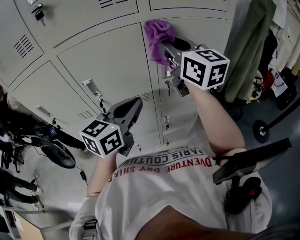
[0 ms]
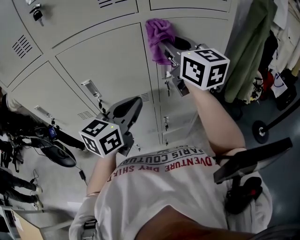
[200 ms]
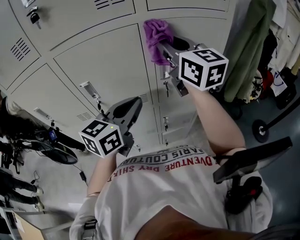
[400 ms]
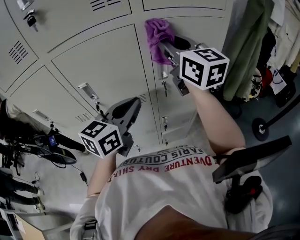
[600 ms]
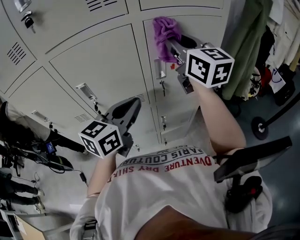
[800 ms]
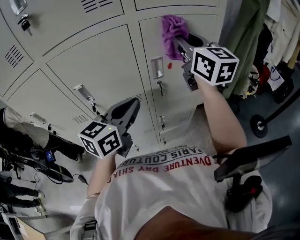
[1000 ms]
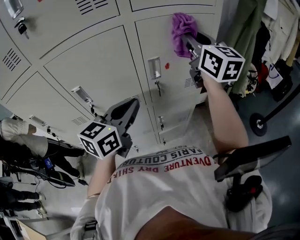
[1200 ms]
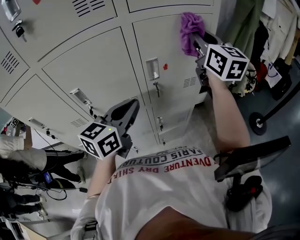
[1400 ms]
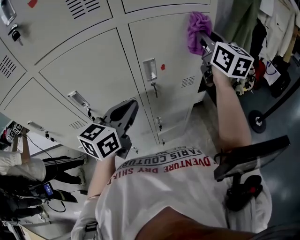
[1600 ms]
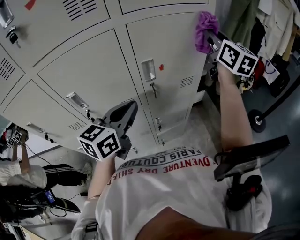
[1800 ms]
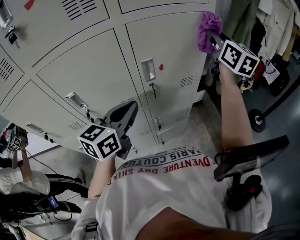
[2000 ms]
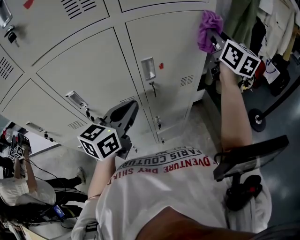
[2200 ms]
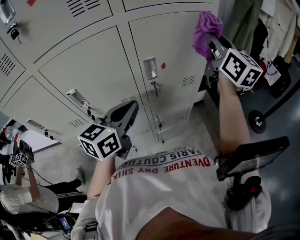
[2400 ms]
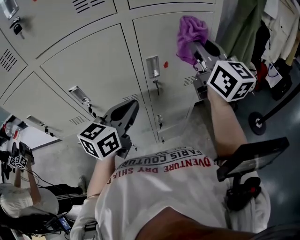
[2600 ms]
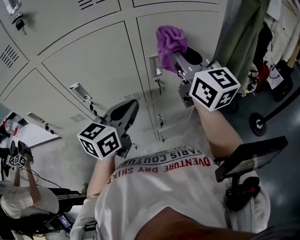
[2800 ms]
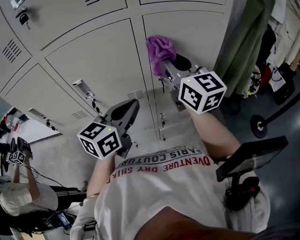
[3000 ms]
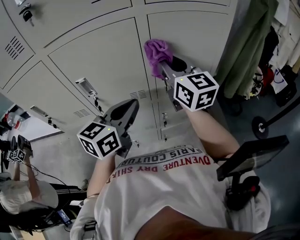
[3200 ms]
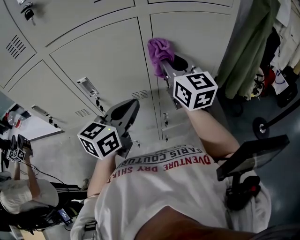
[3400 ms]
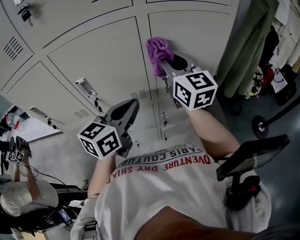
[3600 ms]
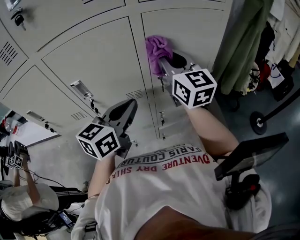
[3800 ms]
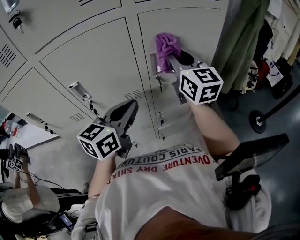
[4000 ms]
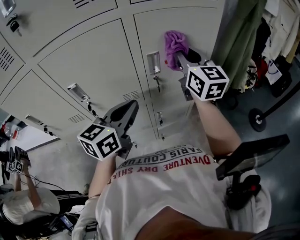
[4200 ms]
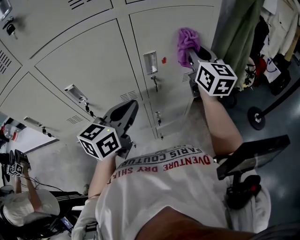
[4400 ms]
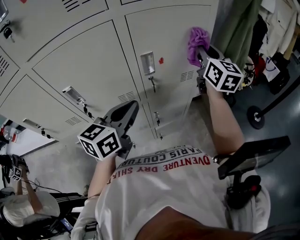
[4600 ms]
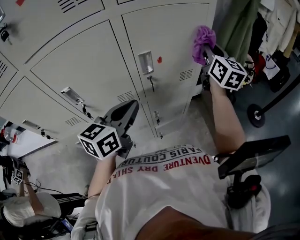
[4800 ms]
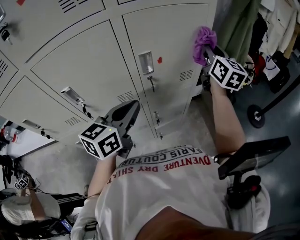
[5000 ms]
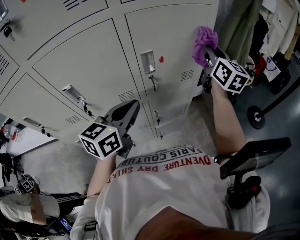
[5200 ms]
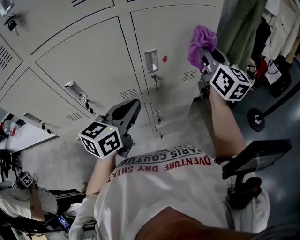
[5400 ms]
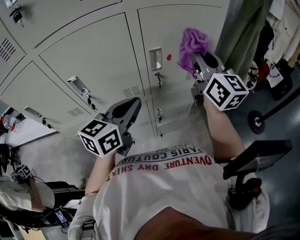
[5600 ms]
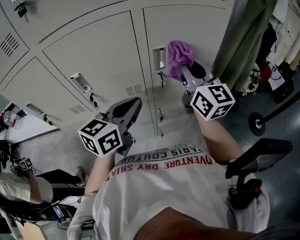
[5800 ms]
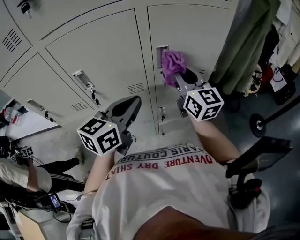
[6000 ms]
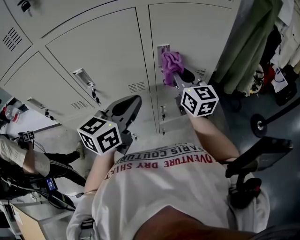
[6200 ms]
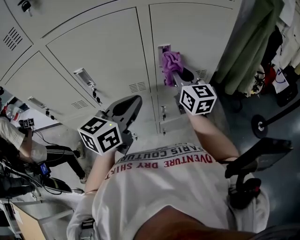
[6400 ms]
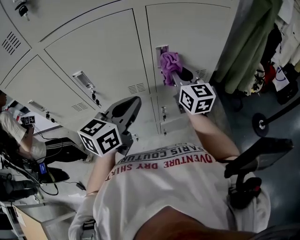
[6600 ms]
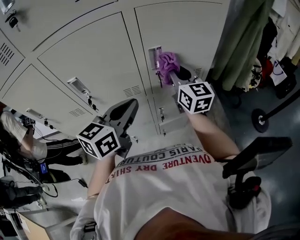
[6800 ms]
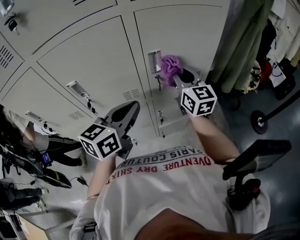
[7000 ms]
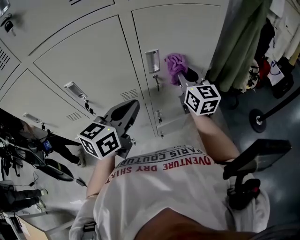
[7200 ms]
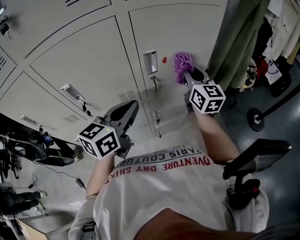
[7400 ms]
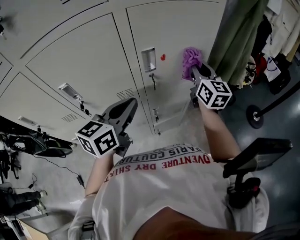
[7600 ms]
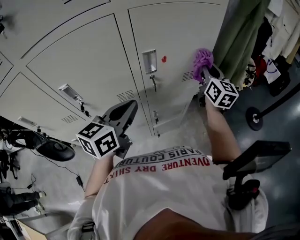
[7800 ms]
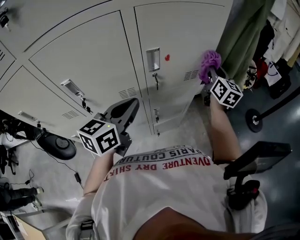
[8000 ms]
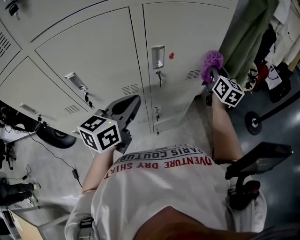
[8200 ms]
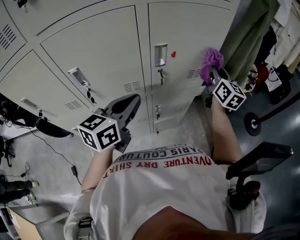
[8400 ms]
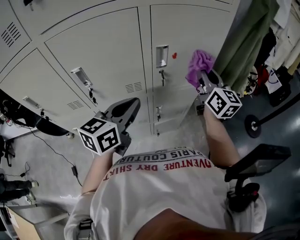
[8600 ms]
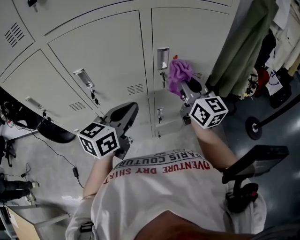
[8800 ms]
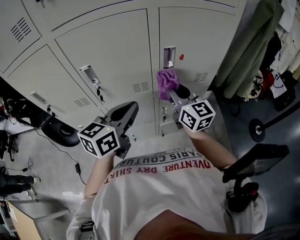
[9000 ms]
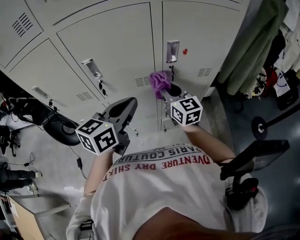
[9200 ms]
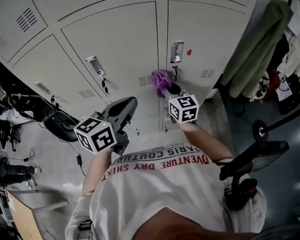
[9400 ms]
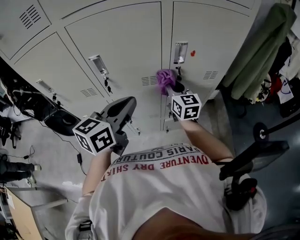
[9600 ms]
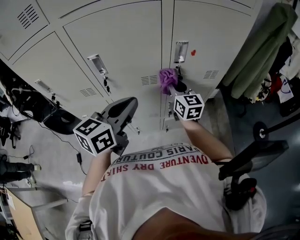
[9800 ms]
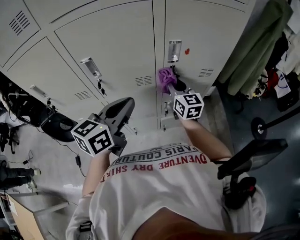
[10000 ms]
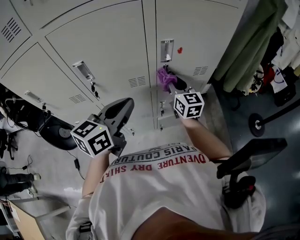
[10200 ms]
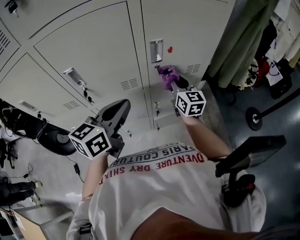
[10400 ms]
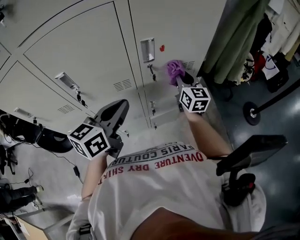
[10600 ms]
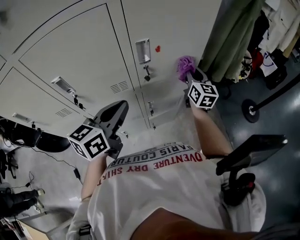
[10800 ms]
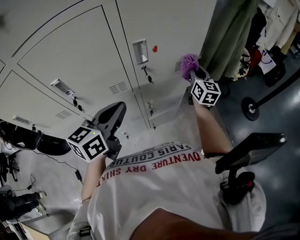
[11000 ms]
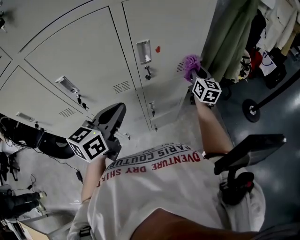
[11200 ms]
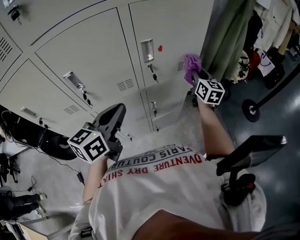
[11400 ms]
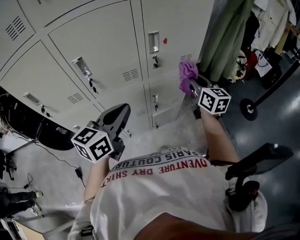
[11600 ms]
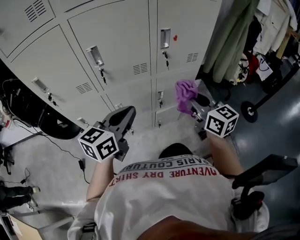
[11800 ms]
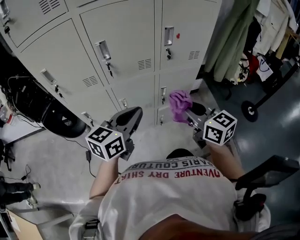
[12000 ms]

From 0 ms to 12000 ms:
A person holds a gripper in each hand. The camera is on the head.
From 0 ms to 1600 ms: The right gripper shifts approximately 20 cm to the right, and swivels about 20 degrees.
From 1600 ms to 3000 ms: The right gripper is displaced to the left and backward by about 20 cm.
From 3000 ms to 4400 ms: The right gripper goes roughly 15 cm to the right and forward.
From 4400 ms to 6000 ms: The right gripper goes about 15 cm to the left, backward and downward.
From 6000 ms to 7600 ms: The right gripper is displaced to the right and forward by roughly 15 cm.
From 7600 ms to 9000 ms: The left gripper moves backward, roughly 5 cm; the right gripper goes about 20 cm to the left and backward, and rotates roughly 20 degrees.
From 9000 ms to 10400 ms: The right gripper is displaced downward, forward and to the right by roughly 15 cm.
From 10400 ms to 12000 ms: The left gripper goes approximately 15 cm backward; the right gripper heads backward, covering approximately 30 cm, and swivels about 20 degrees.

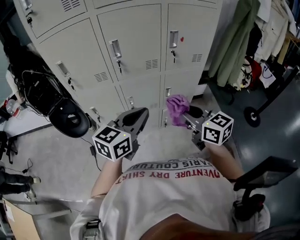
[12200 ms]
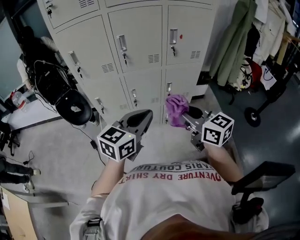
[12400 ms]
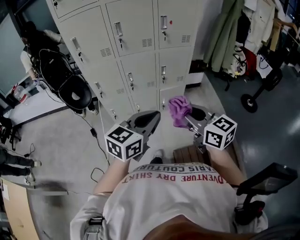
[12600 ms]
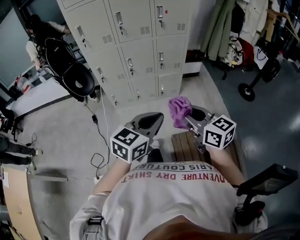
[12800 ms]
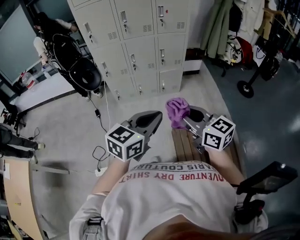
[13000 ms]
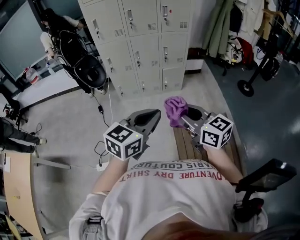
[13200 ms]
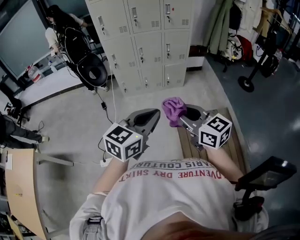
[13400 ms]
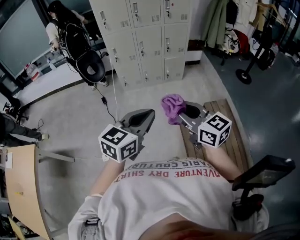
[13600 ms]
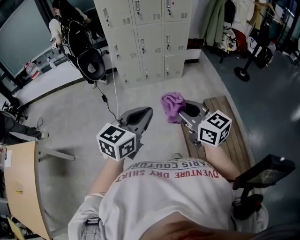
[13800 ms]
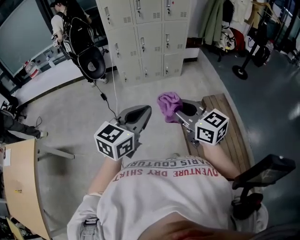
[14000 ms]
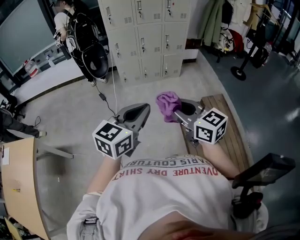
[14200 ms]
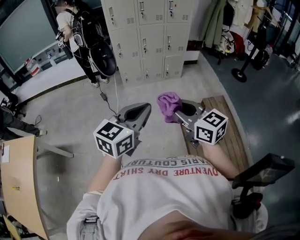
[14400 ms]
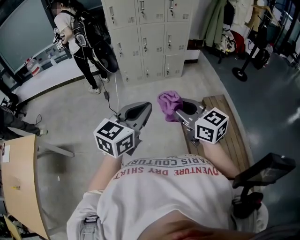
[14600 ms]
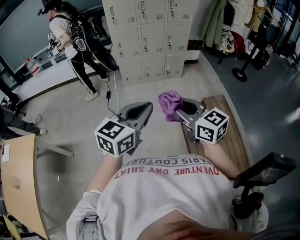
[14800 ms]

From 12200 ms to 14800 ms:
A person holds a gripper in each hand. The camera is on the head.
From 12200 ms to 13400 ms: The pair of grippers is taken backward, some 60 cm.
From 13400 ms to 14800 ms: Both grippers move backward and to the left, some 25 cm.

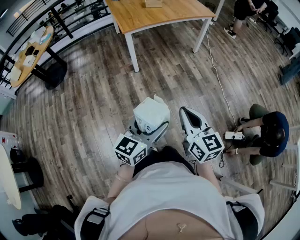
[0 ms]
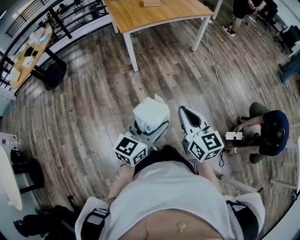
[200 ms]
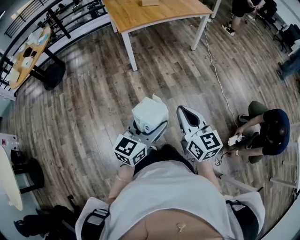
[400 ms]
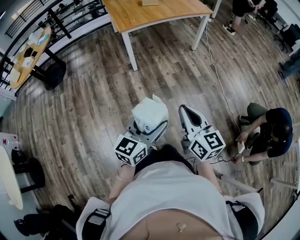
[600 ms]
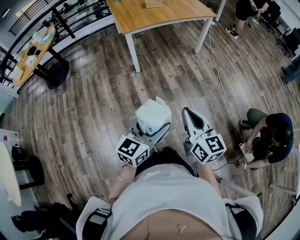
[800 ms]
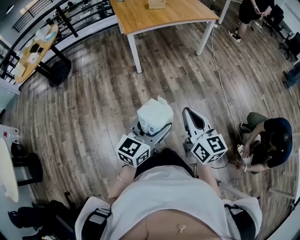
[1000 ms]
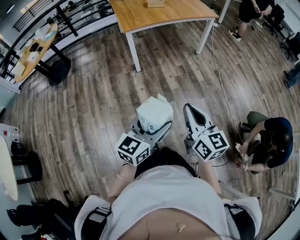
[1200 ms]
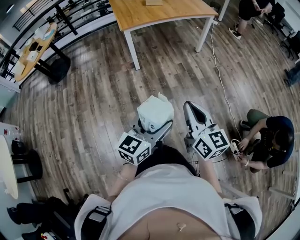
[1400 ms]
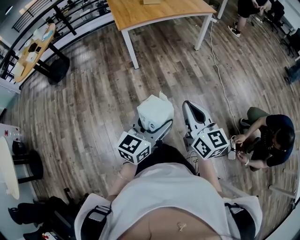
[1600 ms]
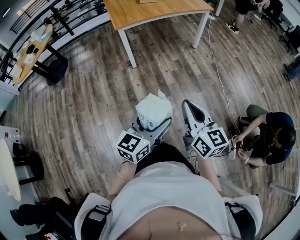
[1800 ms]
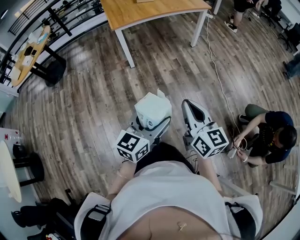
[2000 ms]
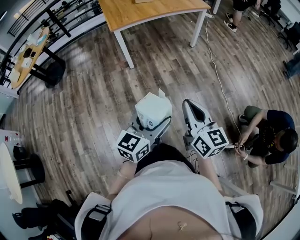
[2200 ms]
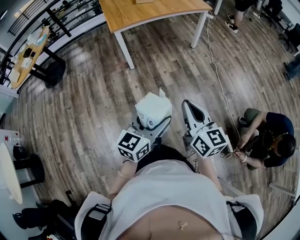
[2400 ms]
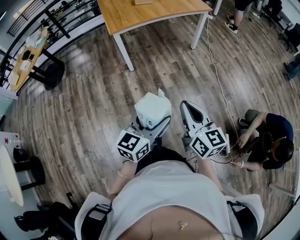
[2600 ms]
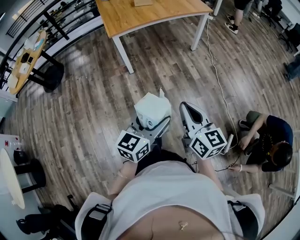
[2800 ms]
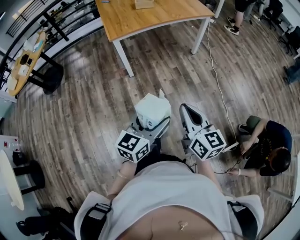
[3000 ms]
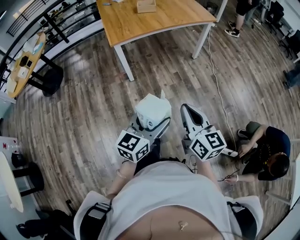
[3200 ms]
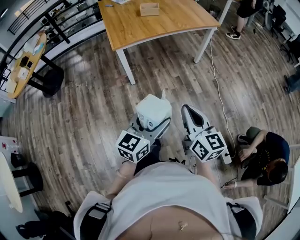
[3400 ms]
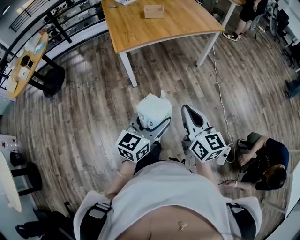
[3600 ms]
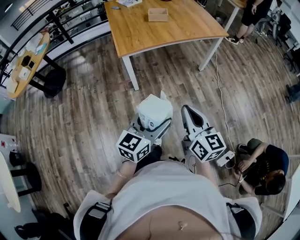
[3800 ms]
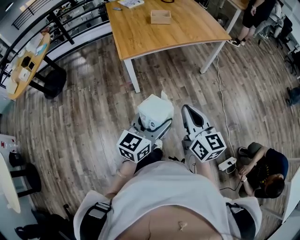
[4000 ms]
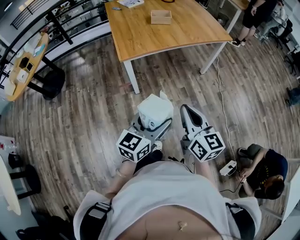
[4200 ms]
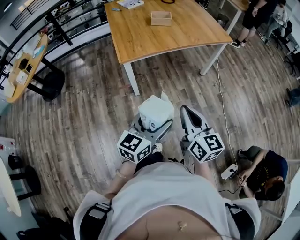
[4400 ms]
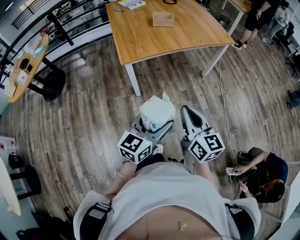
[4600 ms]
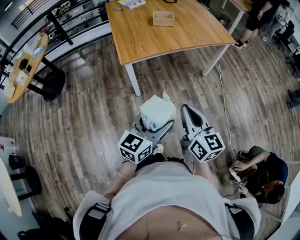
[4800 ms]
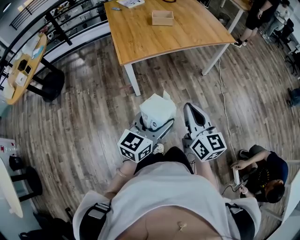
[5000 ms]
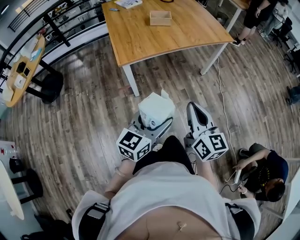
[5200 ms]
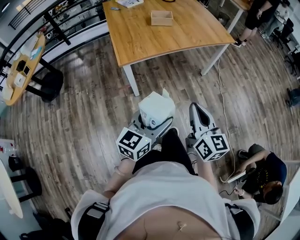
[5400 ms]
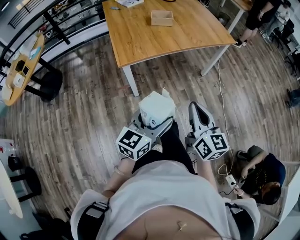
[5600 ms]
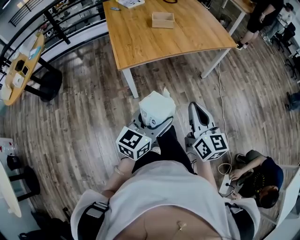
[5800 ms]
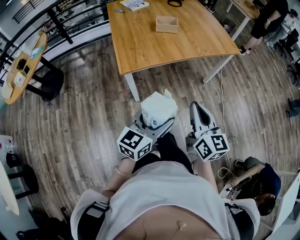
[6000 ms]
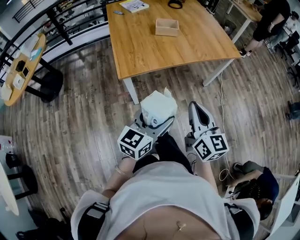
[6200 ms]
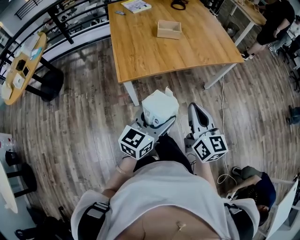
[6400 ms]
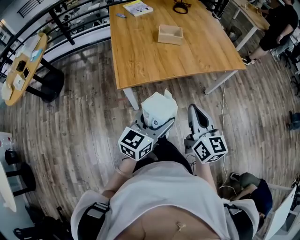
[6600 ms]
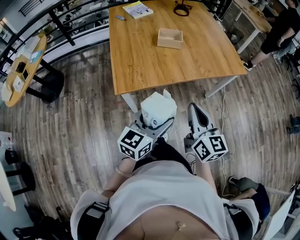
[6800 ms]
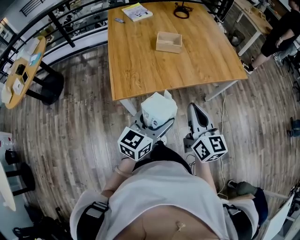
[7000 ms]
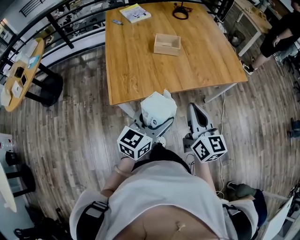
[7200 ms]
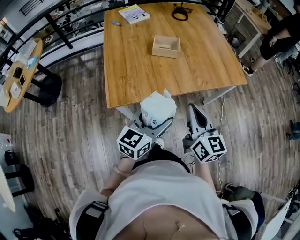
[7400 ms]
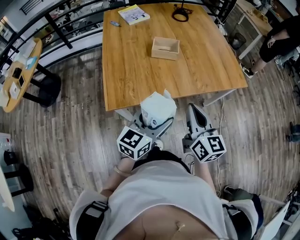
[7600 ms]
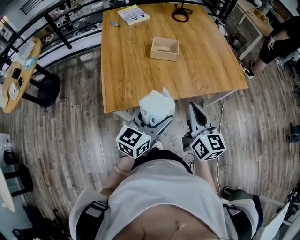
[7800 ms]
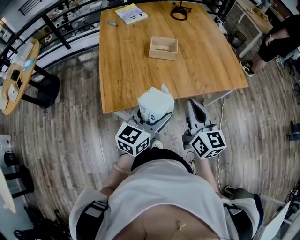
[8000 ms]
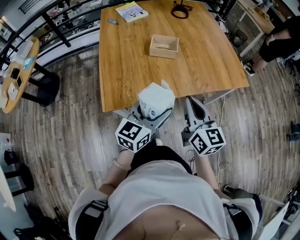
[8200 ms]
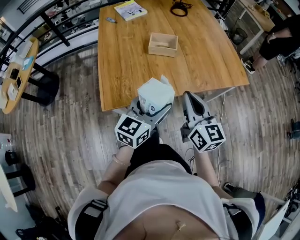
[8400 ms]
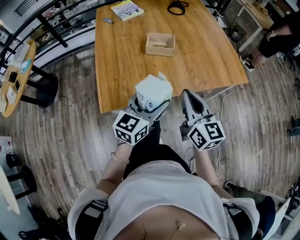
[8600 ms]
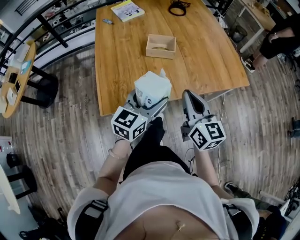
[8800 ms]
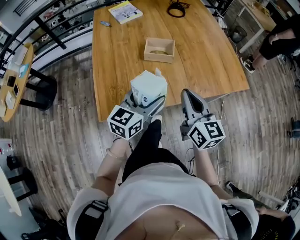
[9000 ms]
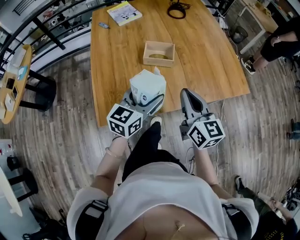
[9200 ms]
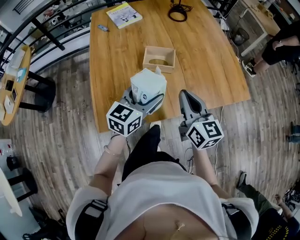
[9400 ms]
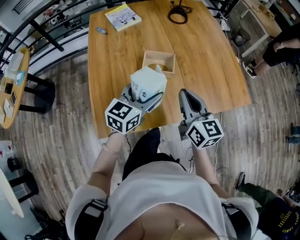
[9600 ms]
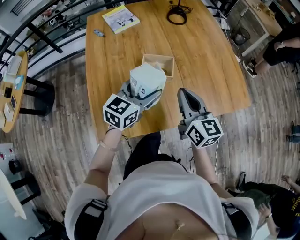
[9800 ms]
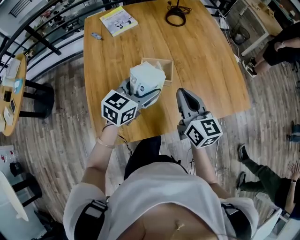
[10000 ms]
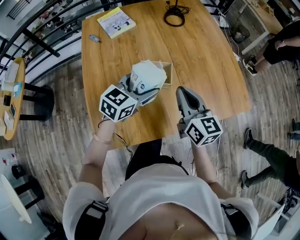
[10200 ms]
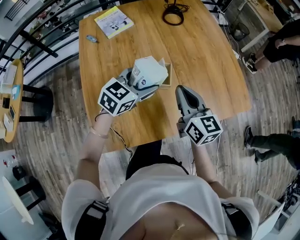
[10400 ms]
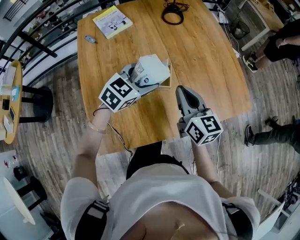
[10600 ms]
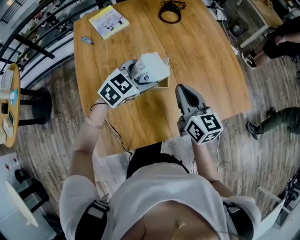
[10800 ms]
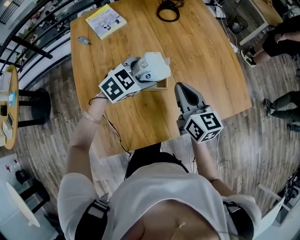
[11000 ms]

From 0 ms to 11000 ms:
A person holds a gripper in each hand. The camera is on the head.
From 0 ms to 1600 ms: Both grippers travel together to the right, roughly 10 cm.
From 1600 ms to 3200 ms: Both grippers move forward, about 20 cm.
From 3200 ms to 4800 ms: The grippers both shift forward and to the left by some 20 cm.
From 4800 ms to 6200 ms: Both grippers travel together forward, roughly 15 cm.
From 6200 ms to 7800 ms: The two grippers go approximately 25 cm forward.
From 7800 ms to 9400 ms: The grippers both shift forward by roughly 20 cm.
From 9400 ms to 11000 ms: Both grippers travel together forward, about 20 cm. The left gripper turns by some 40 degrees.
